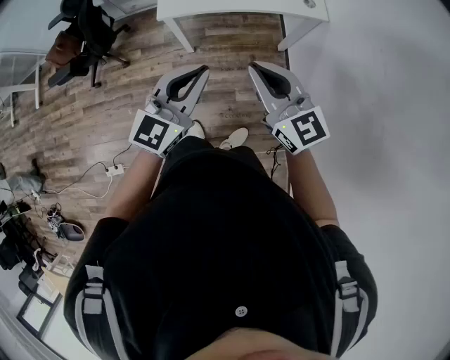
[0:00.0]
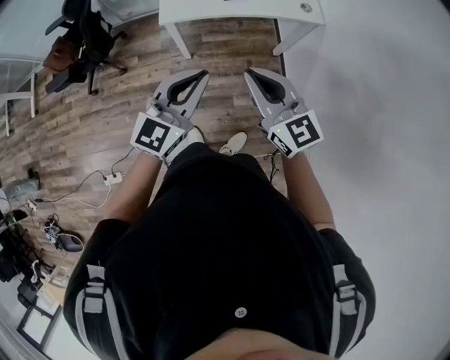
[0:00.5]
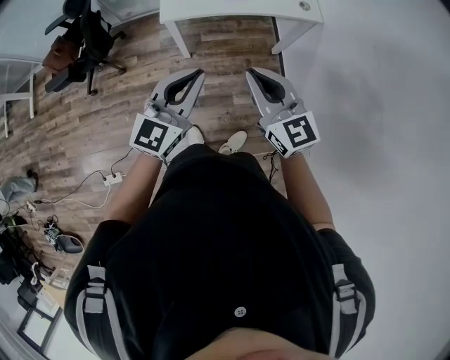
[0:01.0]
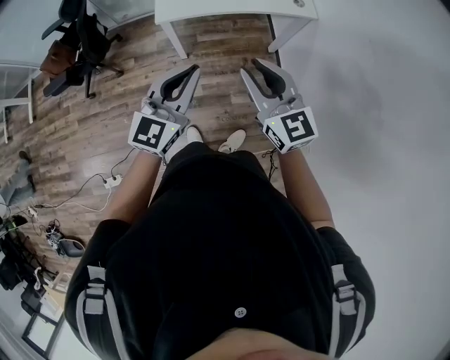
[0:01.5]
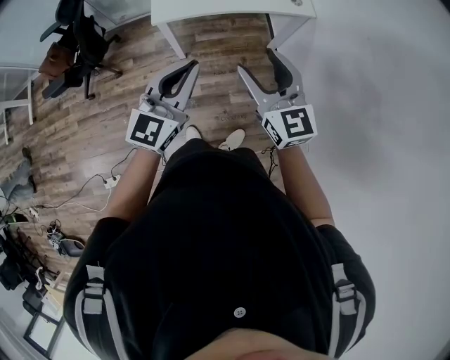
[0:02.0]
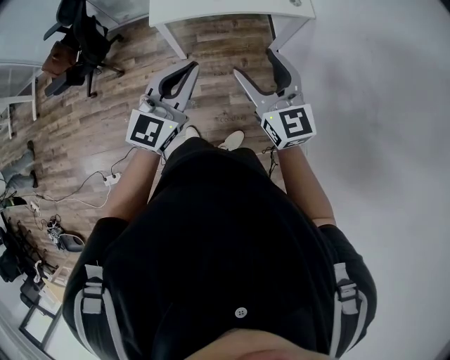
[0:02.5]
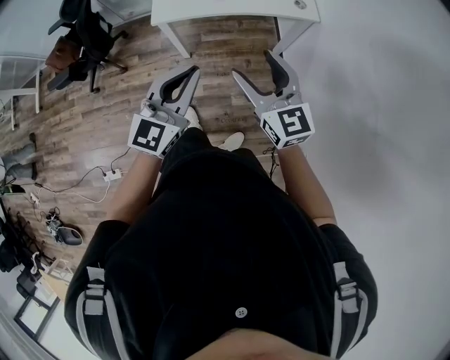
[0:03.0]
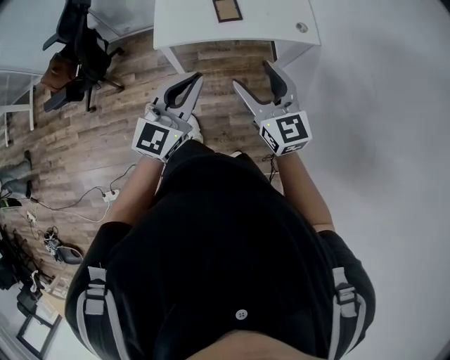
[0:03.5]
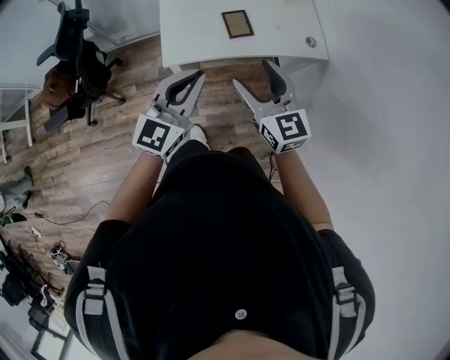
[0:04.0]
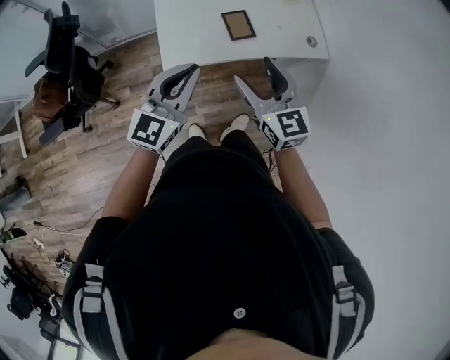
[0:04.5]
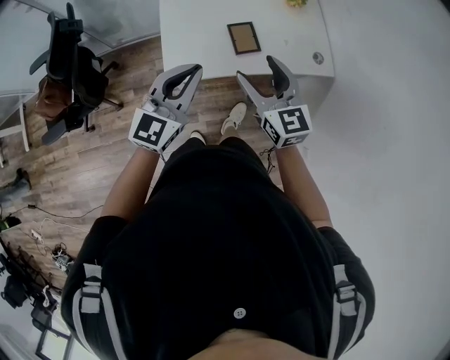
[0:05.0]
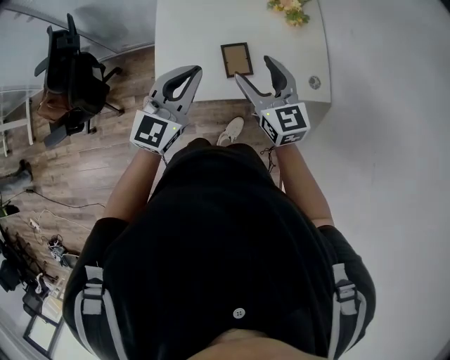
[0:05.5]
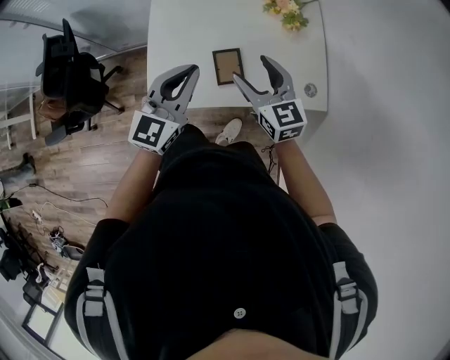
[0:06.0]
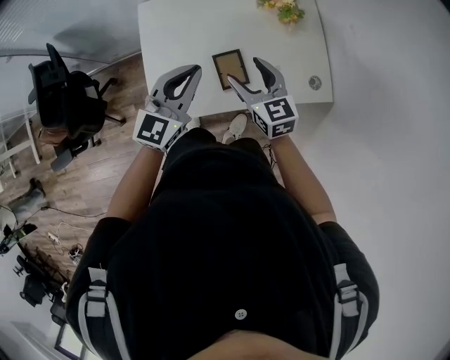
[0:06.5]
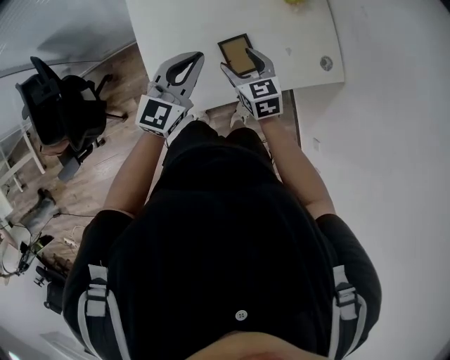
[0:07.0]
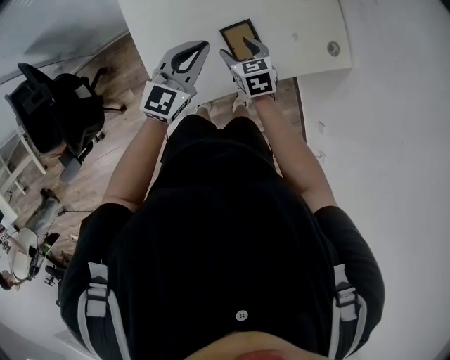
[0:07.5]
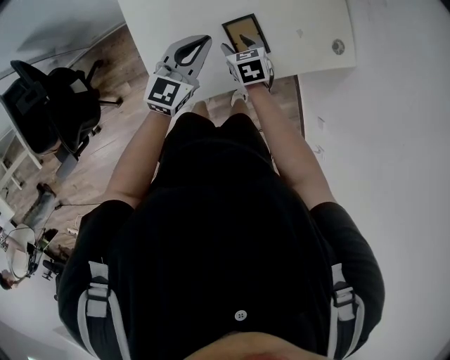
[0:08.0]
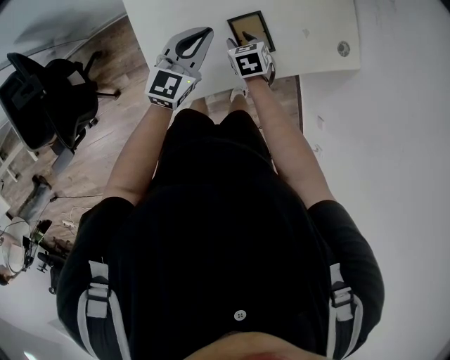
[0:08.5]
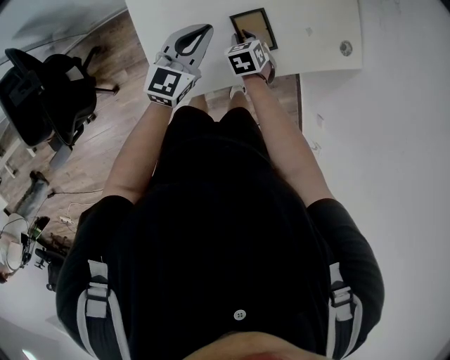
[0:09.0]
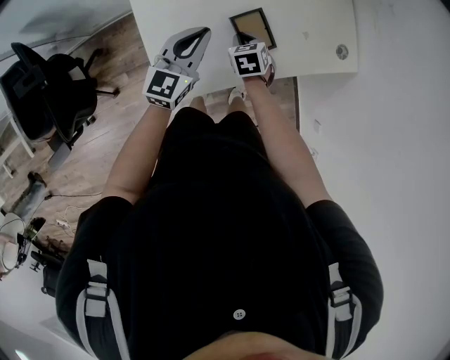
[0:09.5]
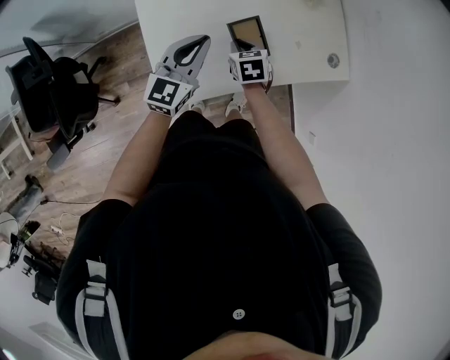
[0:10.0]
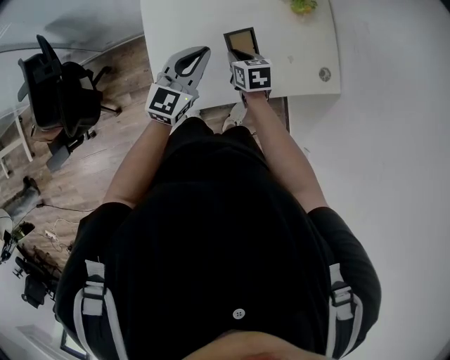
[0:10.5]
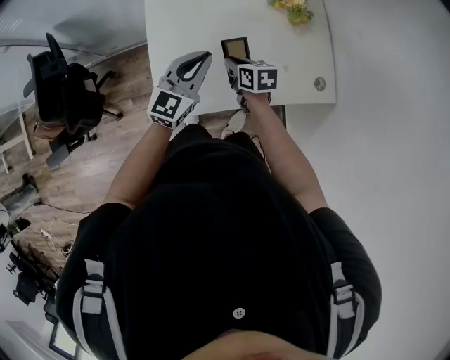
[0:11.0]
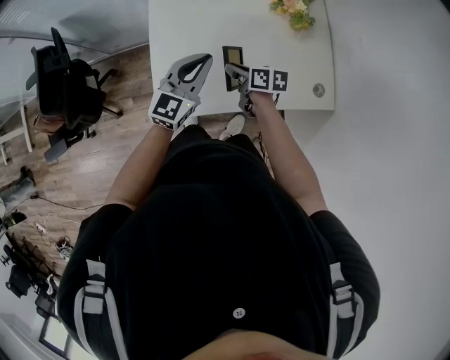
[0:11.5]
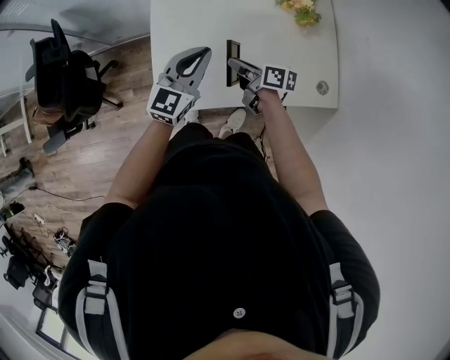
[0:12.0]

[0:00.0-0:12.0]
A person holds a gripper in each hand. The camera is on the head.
0:00.0 to 0:02.0: The right gripper opens its fingers.
0:02.0 to 0:04.0: The left gripper goes some 20 cm forward, while the right gripper is displaced forward and to the left by roughly 25 cm.
0:04.0 to 0:06.0: The grippers both shift forward by some 30 cm.
0:06.0 to 0:08.0: The right gripper travels downward by about 30 cm, and points its fingers roughly 40 degrees further downward, while the left gripper travels downward and forward by some 25 cm, and changes its angle by about 20 degrees.
0:08.0 to 0:10.0: The right gripper closes its fingers.
0:10.0 to 0:12.0: The left gripper goes about 5 cm upward. The right gripper goes roughly 10 cm upward, and tips its fingers upward by roughly 30 degrees.

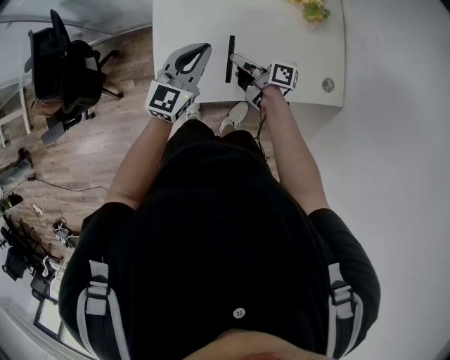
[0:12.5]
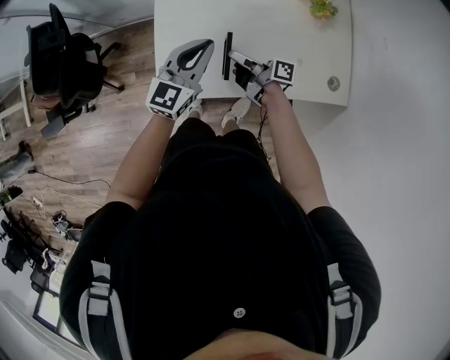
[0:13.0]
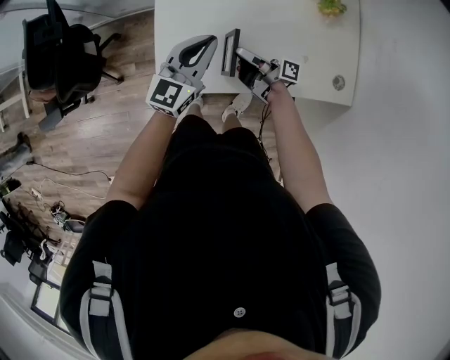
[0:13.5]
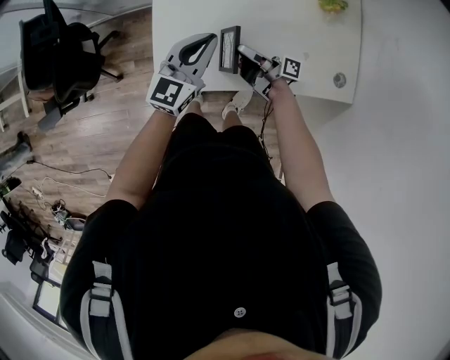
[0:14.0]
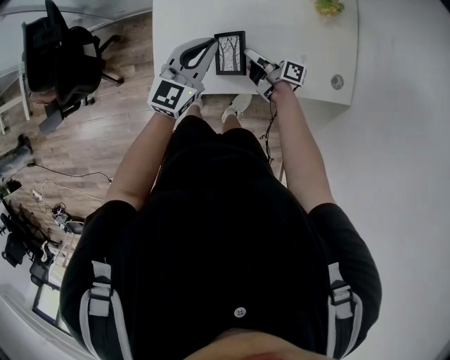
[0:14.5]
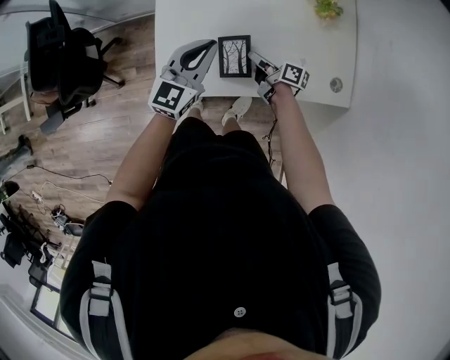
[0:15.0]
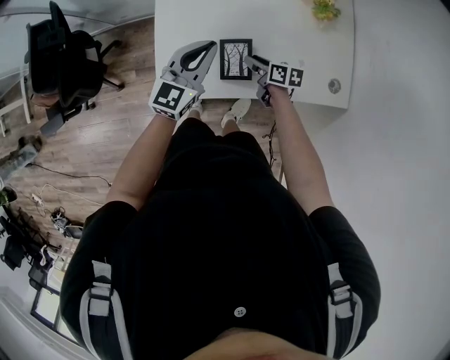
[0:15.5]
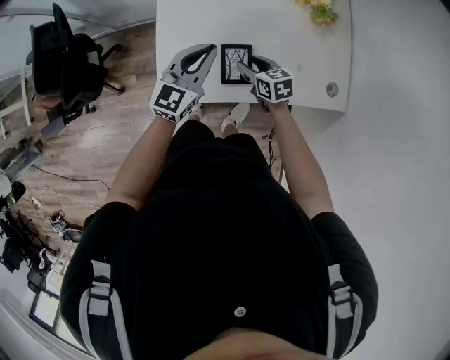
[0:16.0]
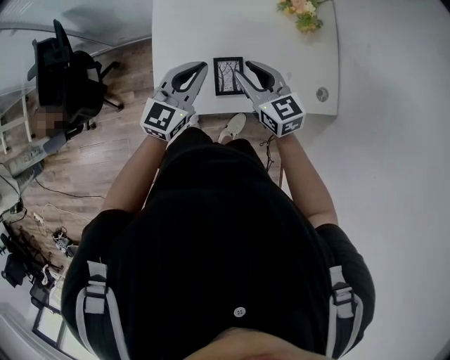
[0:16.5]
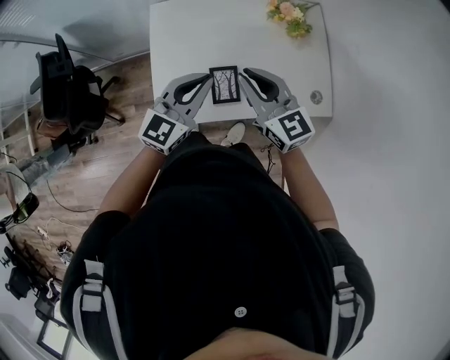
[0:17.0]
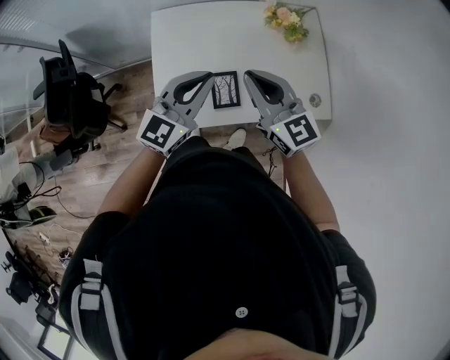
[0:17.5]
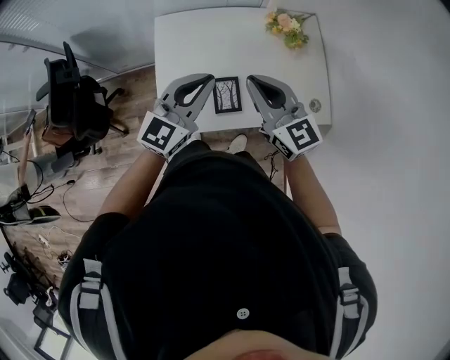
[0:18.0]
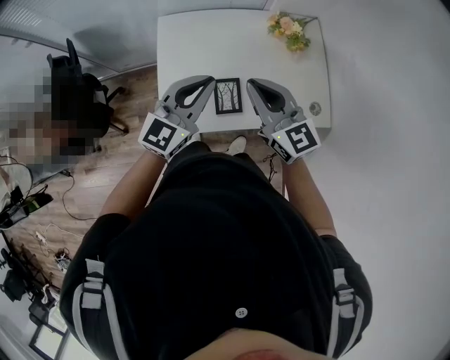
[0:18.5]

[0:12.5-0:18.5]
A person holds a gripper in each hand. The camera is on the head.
0:12.5 to 0:14.5: The right gripper goes approximately 10 cm downward.
0:14.5 to 0:16.5: The right gripper is displaced upward by about 20 cm, and twists about 70 degrees counterclockwise, seen from behind. Meanwhile the left gripper moves upward, roughly 5 cm.
0:16.5 to 0:18.5: Both grippers move upward, roughly 15 cm. The right gripper closes up.

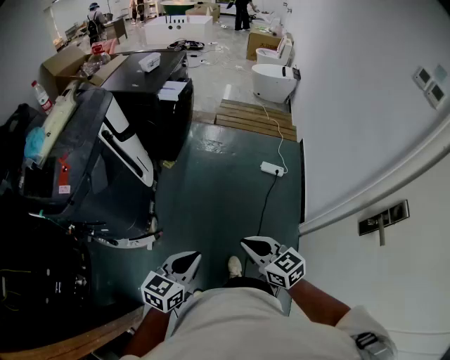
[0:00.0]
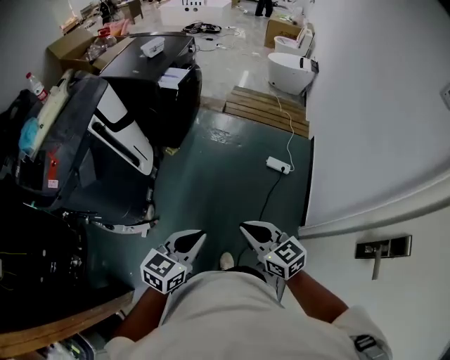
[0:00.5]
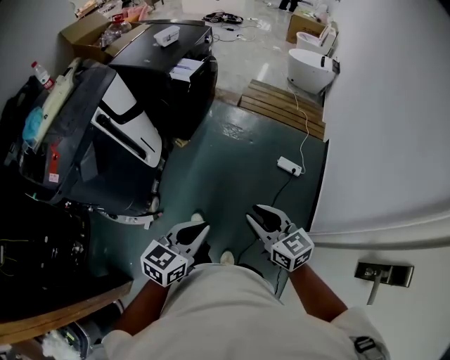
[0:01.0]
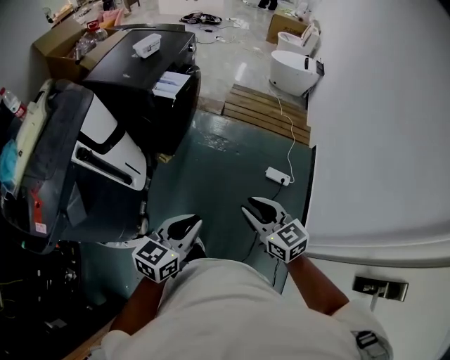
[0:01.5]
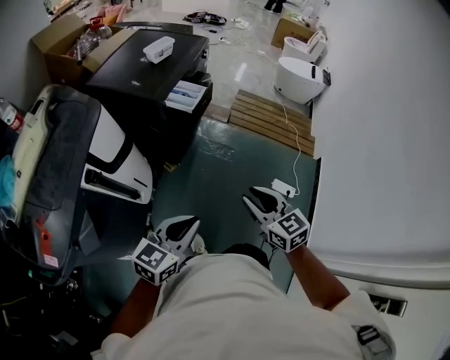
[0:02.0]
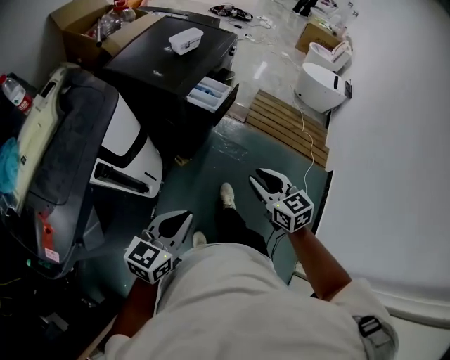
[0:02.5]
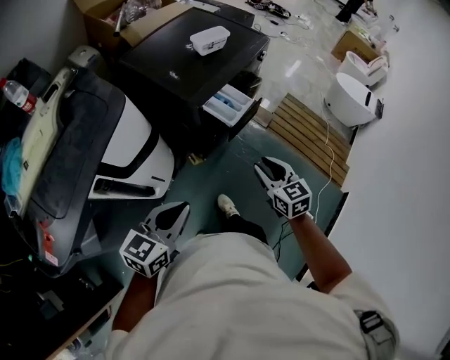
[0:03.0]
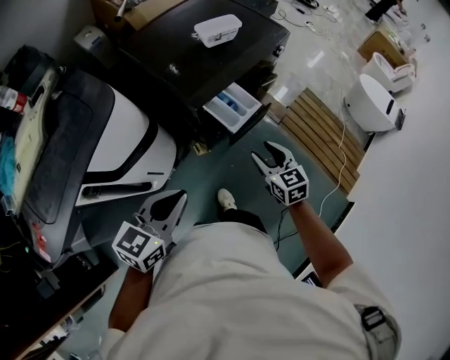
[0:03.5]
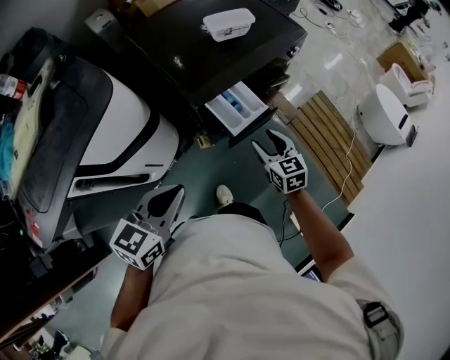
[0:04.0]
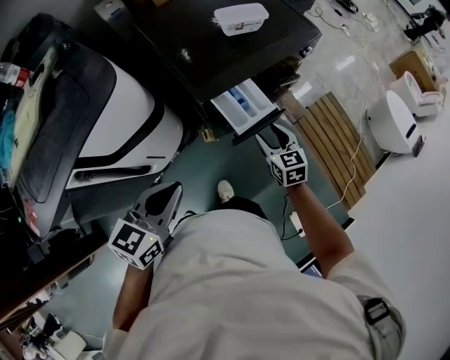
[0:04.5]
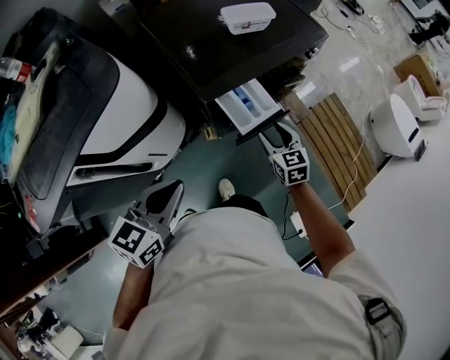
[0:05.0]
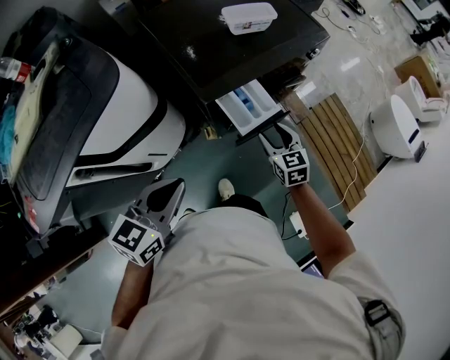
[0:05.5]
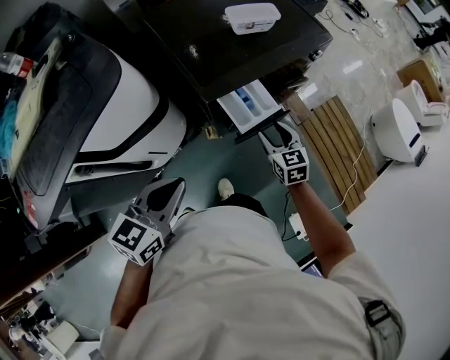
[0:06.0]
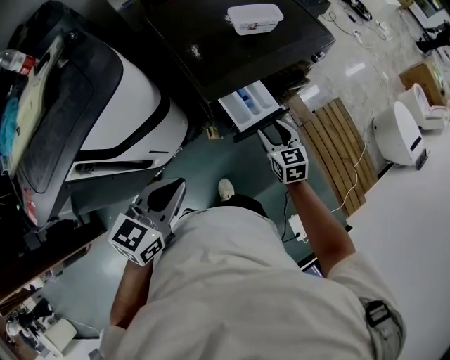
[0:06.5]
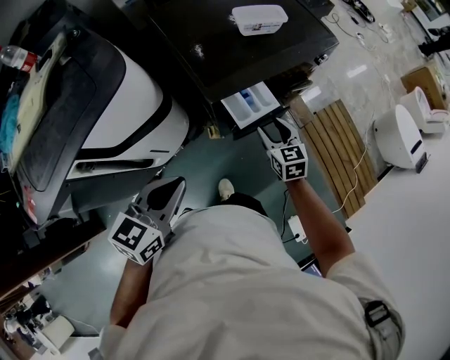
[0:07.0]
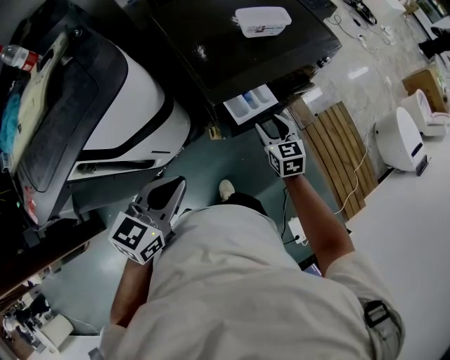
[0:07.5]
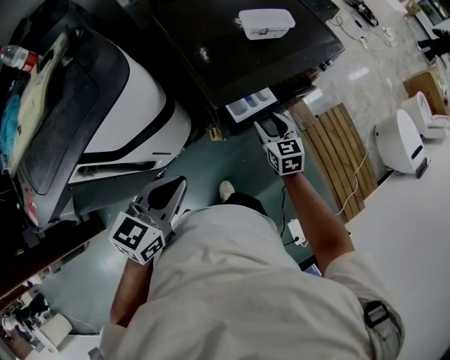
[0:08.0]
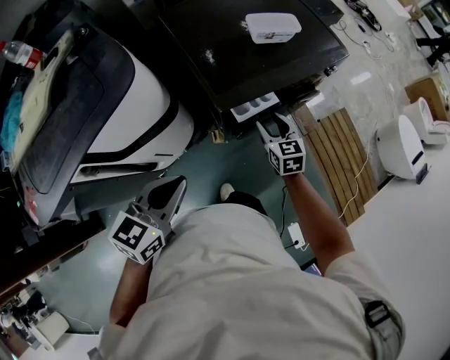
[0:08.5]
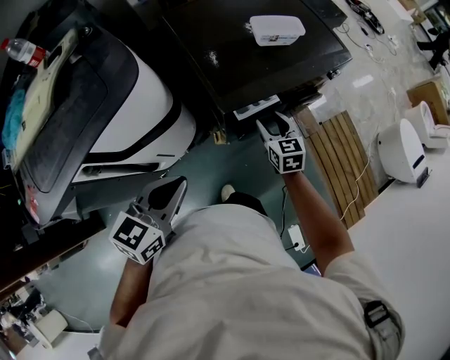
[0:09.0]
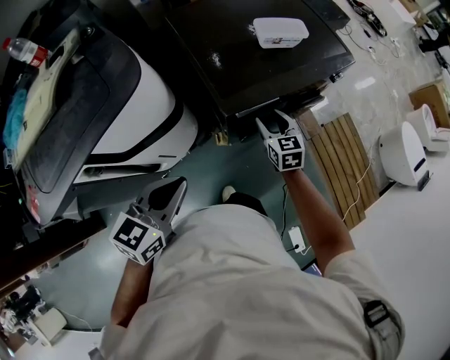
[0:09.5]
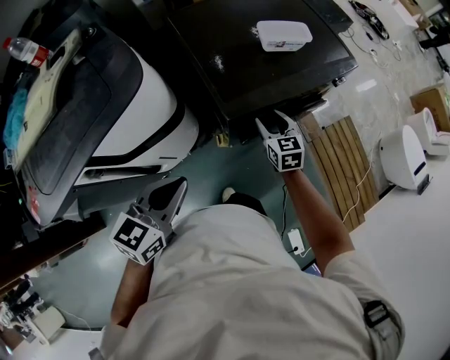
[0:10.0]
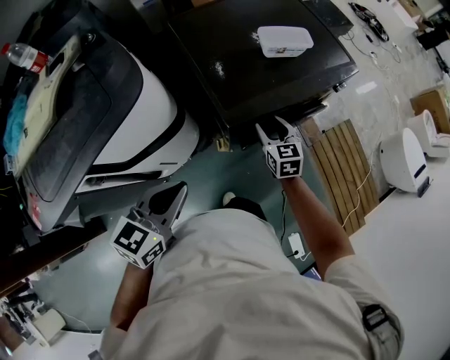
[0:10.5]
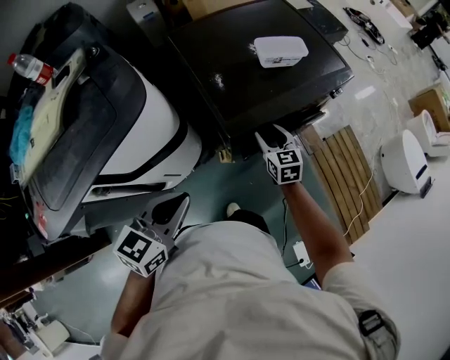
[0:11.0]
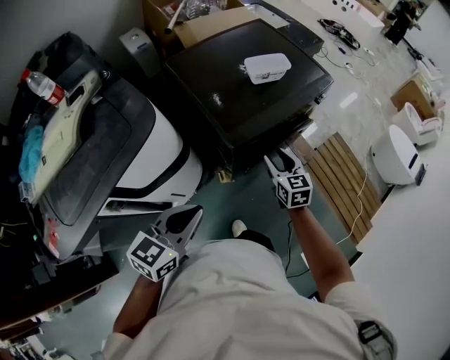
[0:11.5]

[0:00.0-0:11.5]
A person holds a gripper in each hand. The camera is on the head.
0:00.0 to 0:02.0: The pair of grippers is taken forward, about 40 cm. The right gripper opens its fingers.
0:02.0 to 0:04.0: The right gripper changes place by roughly 50 cm, rotates about 20 degrees, and opens up. The left gripper ends up approximately 30 cm from where it was, and changes its angle by about 40 degrees.
0:04.0 to 0:06.0: The right gripper moves about 5 cm.
0:06.0 to 0:07.5: The grippers make only small movements.
0:07.5 to 0:09.5: The right gripper shifts about 5 cm forward.
0:09.5 to 0:11.5: The right gripper travels upward and backward by roughly 10 cm.
